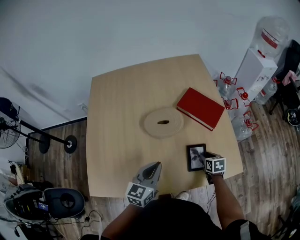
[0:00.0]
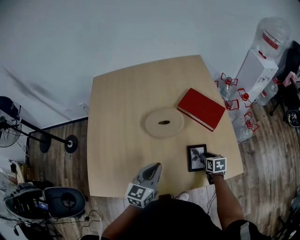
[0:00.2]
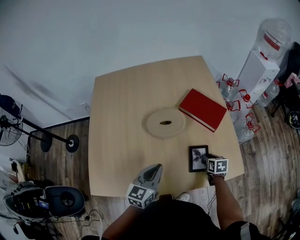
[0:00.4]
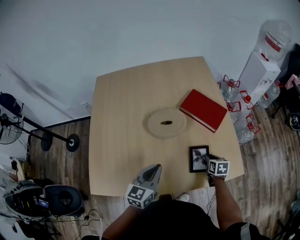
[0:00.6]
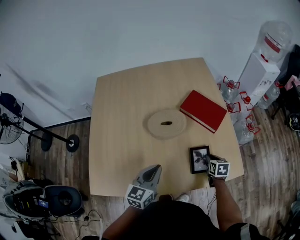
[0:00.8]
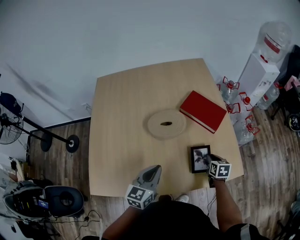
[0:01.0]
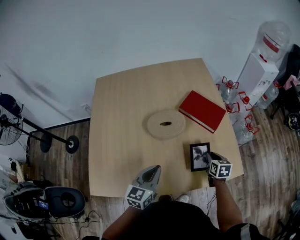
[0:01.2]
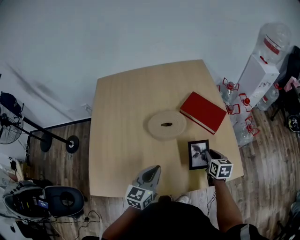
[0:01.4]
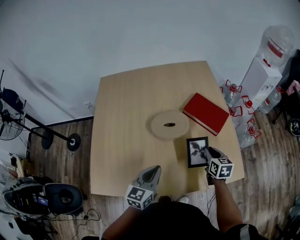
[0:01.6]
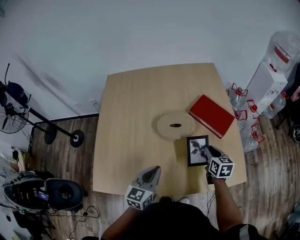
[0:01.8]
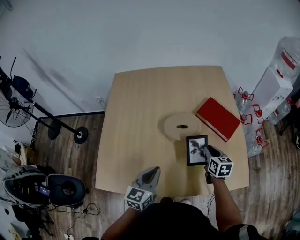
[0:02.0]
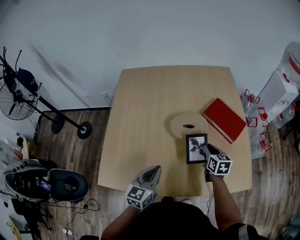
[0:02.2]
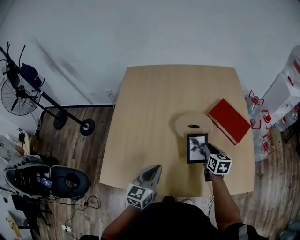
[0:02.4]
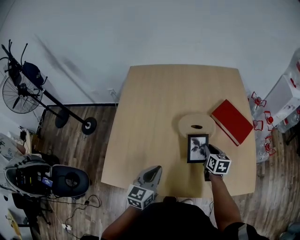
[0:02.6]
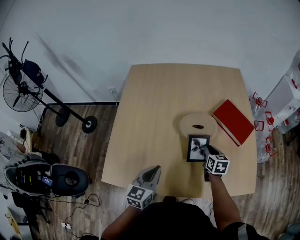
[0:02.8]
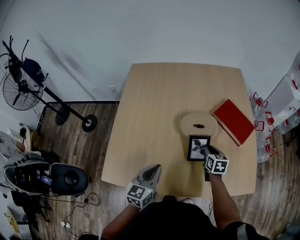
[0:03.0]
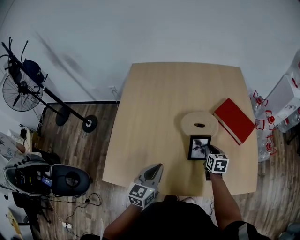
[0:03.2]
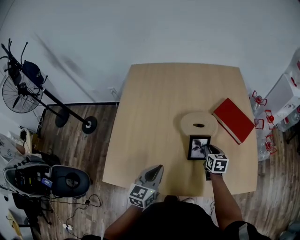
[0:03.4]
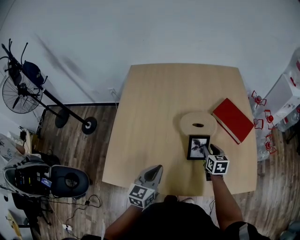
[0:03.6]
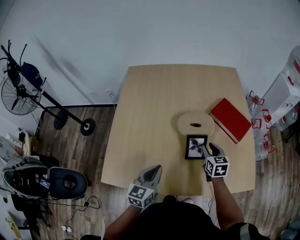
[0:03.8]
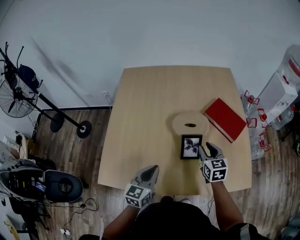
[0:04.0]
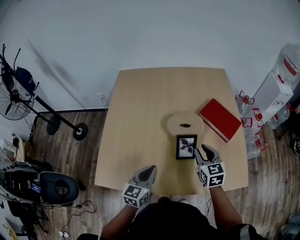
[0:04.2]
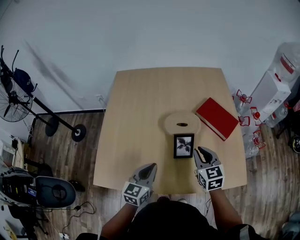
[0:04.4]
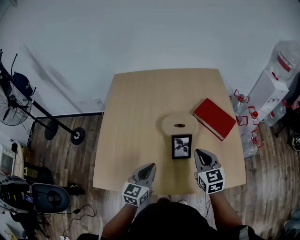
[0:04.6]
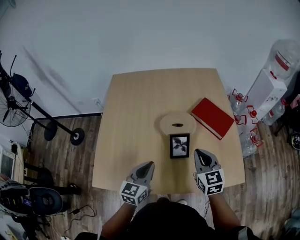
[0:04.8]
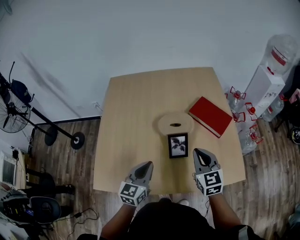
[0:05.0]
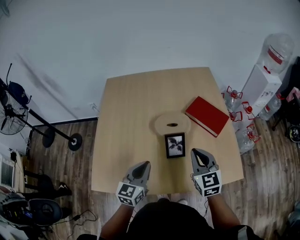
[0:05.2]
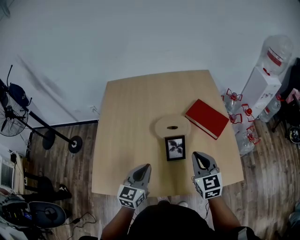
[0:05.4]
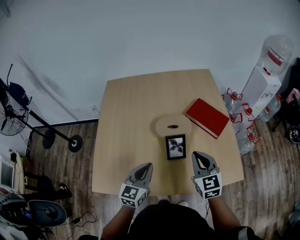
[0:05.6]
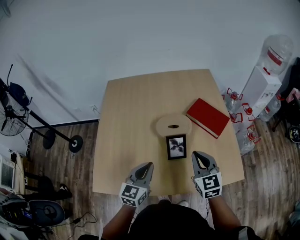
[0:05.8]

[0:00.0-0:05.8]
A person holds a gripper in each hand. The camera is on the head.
0:00.0 to 0:01.4: The right gripper heads upward, covering approximately 10 cm.
0:01.4 to 0:02.8: The right gripper goes some 20 cm to the left and forward. The left gripper shifts approximately 15 cm to the left.
0:02.8 to 0:04.4: The right gripper heads upward and backward, covering approximately 15 cm, and turns by approximately 30 degrees.
0:04.4 to 0:05.8: The right gripper shifts by roughly 5 cm.

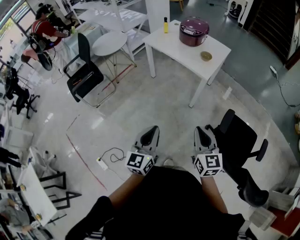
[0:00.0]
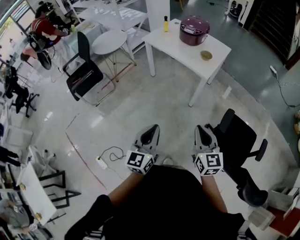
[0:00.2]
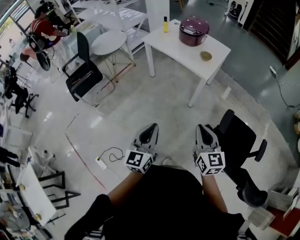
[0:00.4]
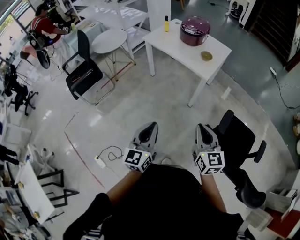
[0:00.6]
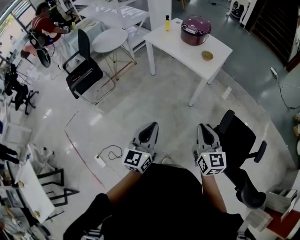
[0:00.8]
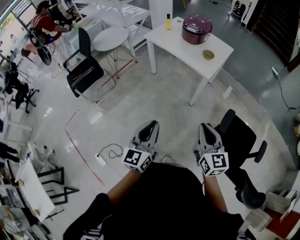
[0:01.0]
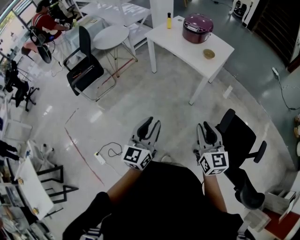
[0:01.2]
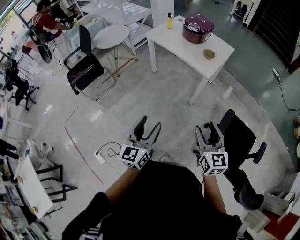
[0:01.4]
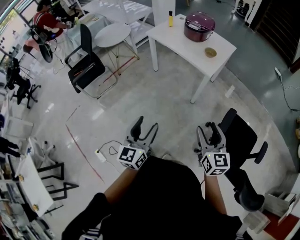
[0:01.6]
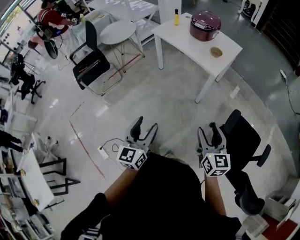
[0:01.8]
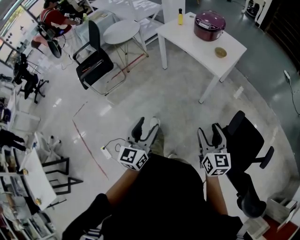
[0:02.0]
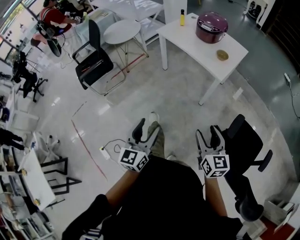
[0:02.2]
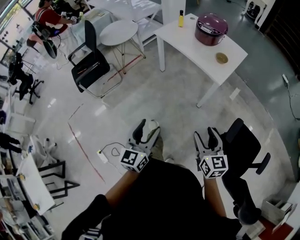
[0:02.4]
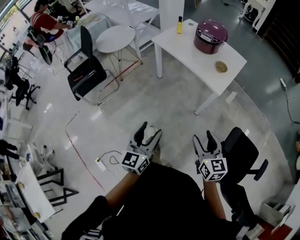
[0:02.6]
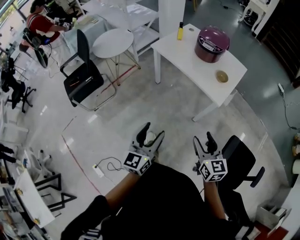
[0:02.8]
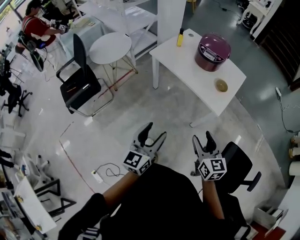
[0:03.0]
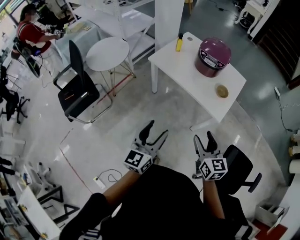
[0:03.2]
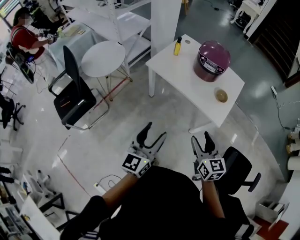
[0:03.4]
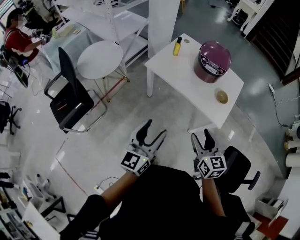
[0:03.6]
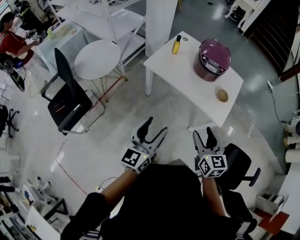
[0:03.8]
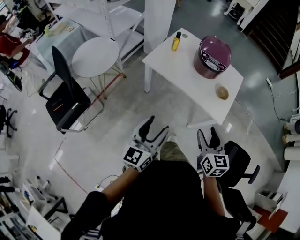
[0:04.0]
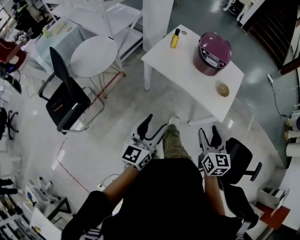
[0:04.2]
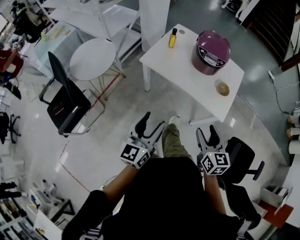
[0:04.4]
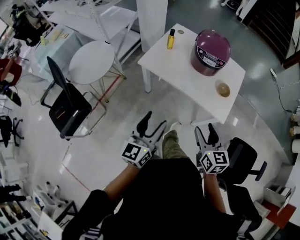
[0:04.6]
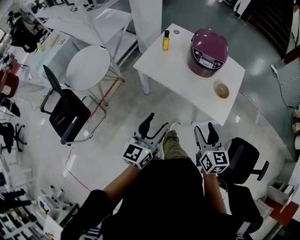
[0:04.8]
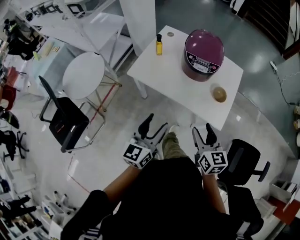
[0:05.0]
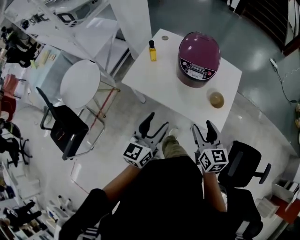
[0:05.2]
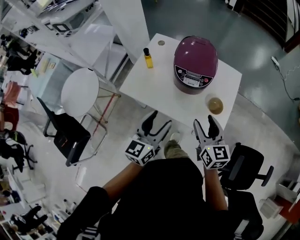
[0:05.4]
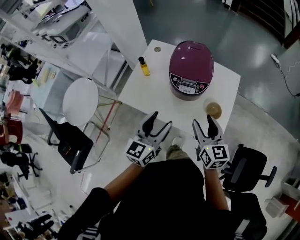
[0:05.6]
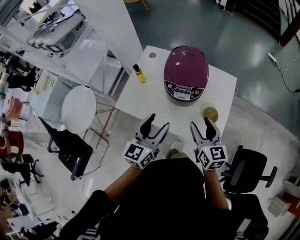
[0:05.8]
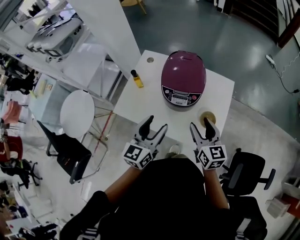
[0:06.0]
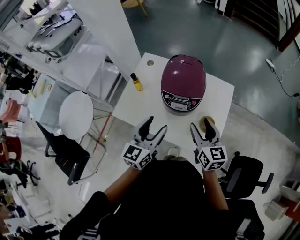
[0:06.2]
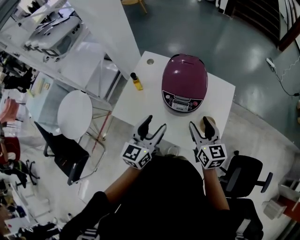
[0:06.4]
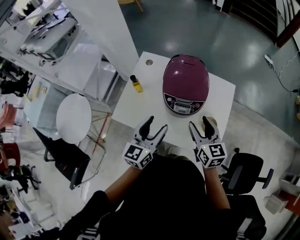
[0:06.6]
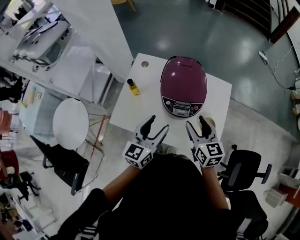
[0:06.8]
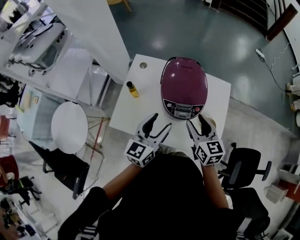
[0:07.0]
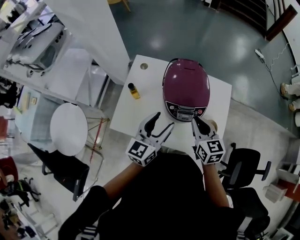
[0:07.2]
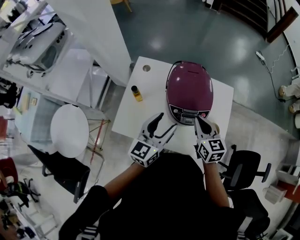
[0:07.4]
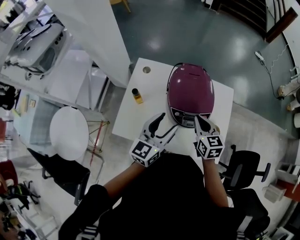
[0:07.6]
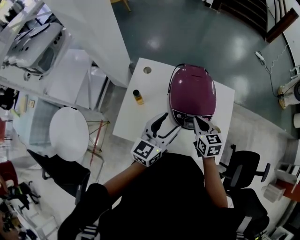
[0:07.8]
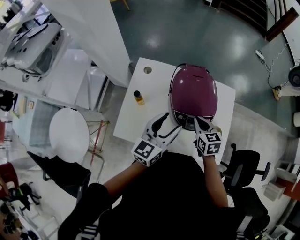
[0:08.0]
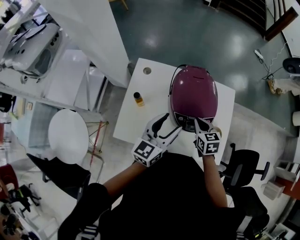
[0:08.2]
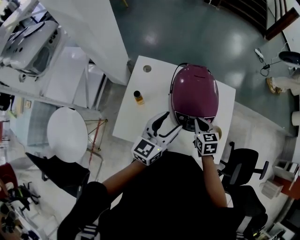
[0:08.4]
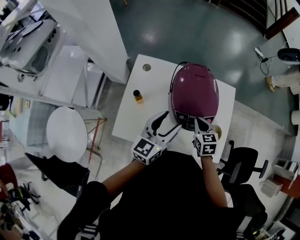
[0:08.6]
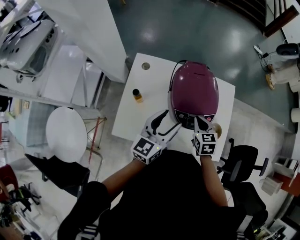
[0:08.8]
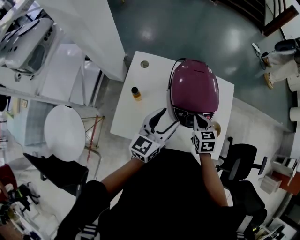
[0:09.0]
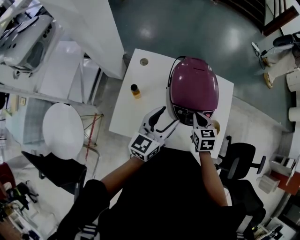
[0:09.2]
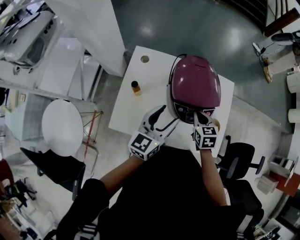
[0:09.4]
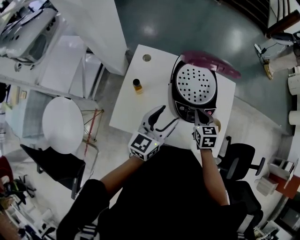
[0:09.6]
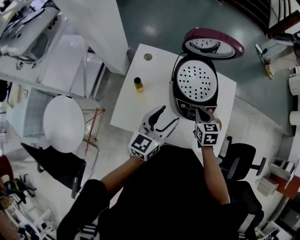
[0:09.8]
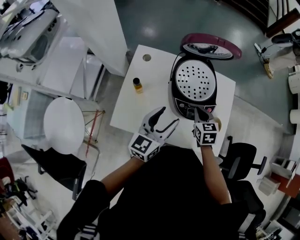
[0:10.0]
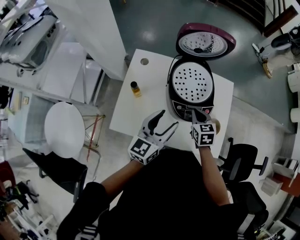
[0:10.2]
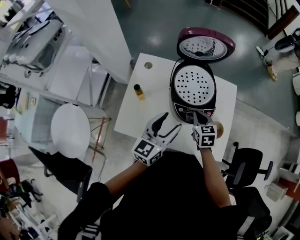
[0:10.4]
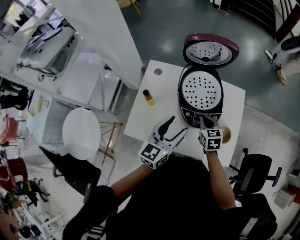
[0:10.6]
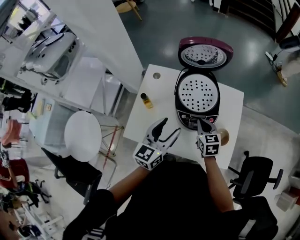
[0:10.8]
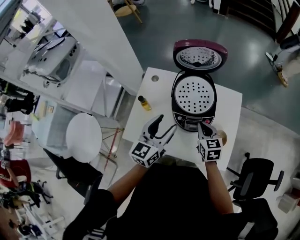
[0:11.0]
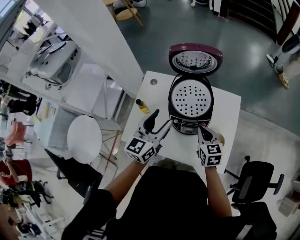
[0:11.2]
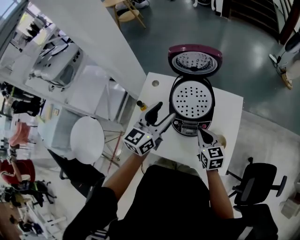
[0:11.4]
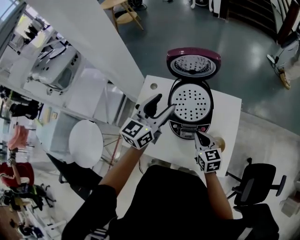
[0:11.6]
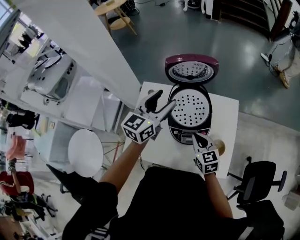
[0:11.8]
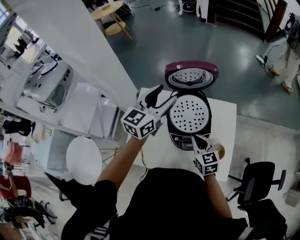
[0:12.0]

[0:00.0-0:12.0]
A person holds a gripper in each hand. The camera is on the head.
0:00.0 to 0:01.6: The right gripper opens. The left gripper opens its fingers.
0:01.6 to 0:03.0: Both grippers travel together forward, some 25 cm.
0:03.0 to 0:04.4: The grippers both shift forward and to the left by about 20 cm.
0:04.4 to 0:06.0: The left gripper is displaced forward and to the right by roughly 35 cm. Meanwhile the right gripper shifts approximately 30 cm forward.
0:06.0 to 0:07.6: The right gripper goes about 15 cm forward and to the left, and closes its fingers. Meanwhile the left gripper travels forward by about 15 cm.
0:07.6 to 0:09.0: The right gripper goes approximately 5 cm downward.
0:09.0 to 0:10.4: The grippers stay close to where they were, moving slightly.
0:10.4 to 0:12.0: The right gripper is displaced upward by some 10 cm, while the left gripper heads forward and upward, covering about 25 cm.

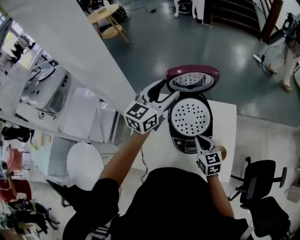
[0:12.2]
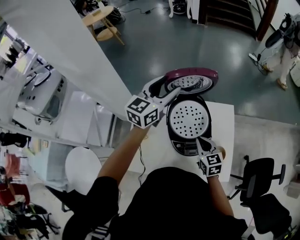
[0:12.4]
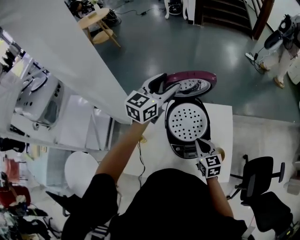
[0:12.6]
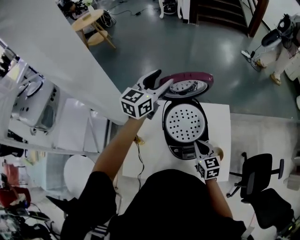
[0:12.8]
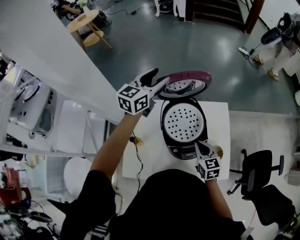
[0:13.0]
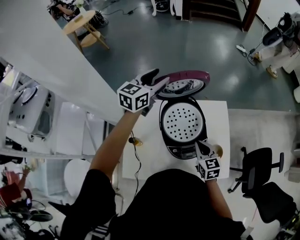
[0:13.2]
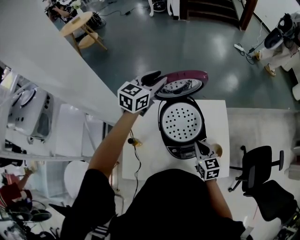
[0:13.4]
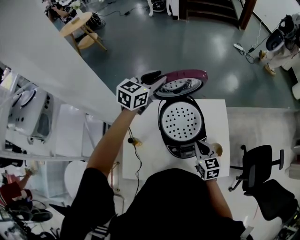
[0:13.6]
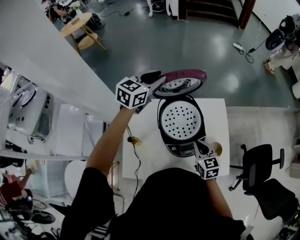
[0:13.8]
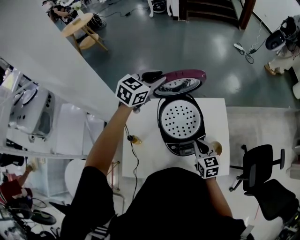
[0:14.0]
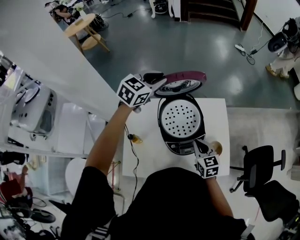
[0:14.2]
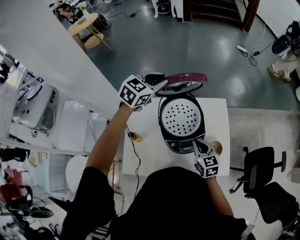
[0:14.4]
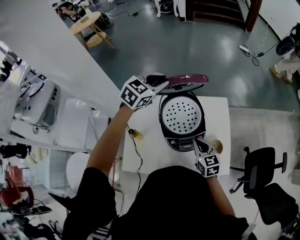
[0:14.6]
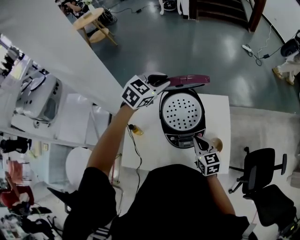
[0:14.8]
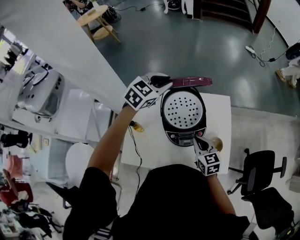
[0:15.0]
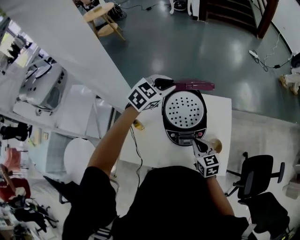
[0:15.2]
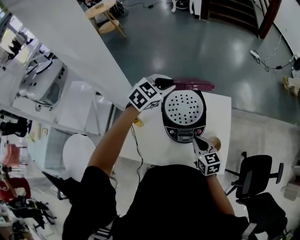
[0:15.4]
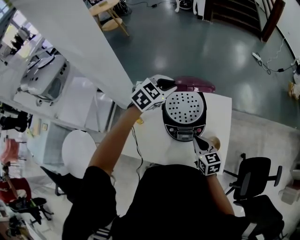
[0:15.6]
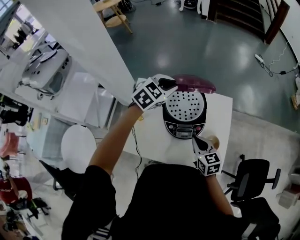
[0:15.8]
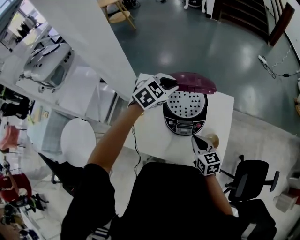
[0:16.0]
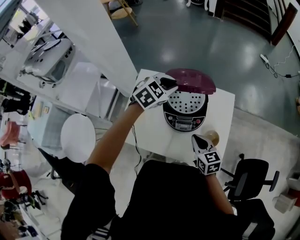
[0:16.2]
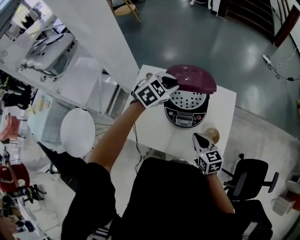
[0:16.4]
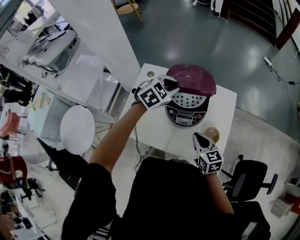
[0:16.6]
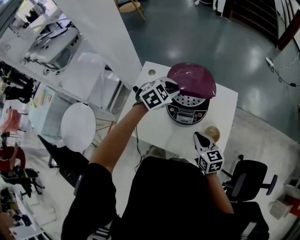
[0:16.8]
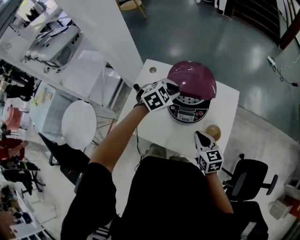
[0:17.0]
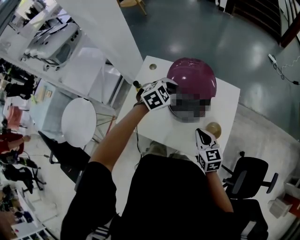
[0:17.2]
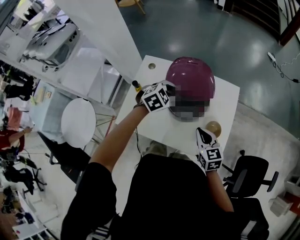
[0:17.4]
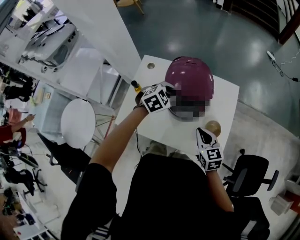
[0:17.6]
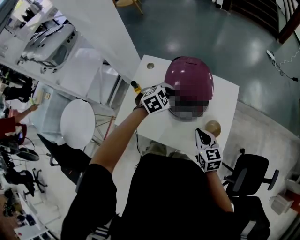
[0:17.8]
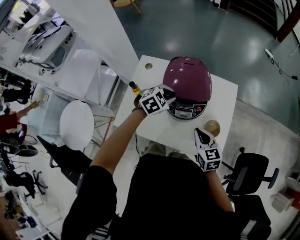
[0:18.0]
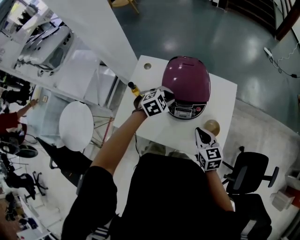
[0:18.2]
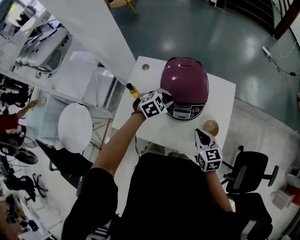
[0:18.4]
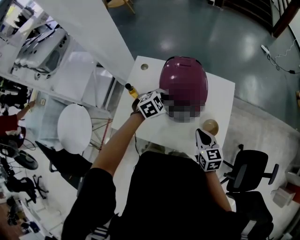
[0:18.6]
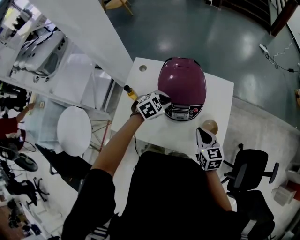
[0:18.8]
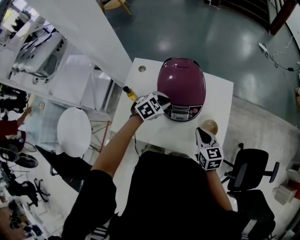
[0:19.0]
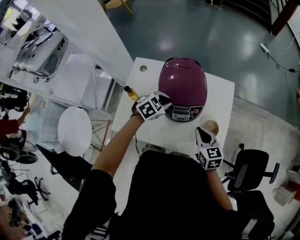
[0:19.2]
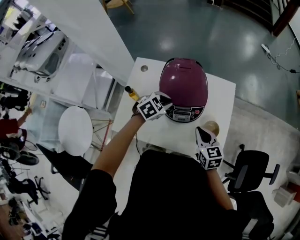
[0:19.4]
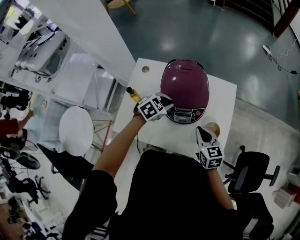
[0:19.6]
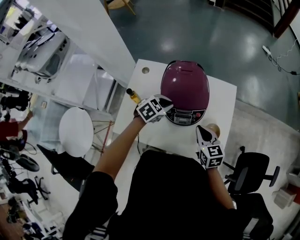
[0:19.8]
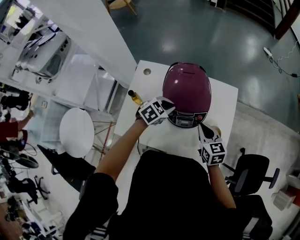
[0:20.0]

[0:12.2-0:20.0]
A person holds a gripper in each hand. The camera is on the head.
0:12.2 to 0:13.8: The left gripper moves forward, approximately 10 cm, changes its angle by some 20 degrees, and closes up.
0:13.8 to 0:15.4: The left gripper travels backward by some 10 cm.
0:15.4 to 0:16.8: The left gripper goes approximately 15 cm backward and downward. The right gripper heads backward, covering roughly 5 cm.
0:16.8 to 0:18.4: The left gripper heads downward, covering roughly 10 cm.
0:18.4 to 0:20.0: The right gripper is displaced forward by approximately 5 cm.
